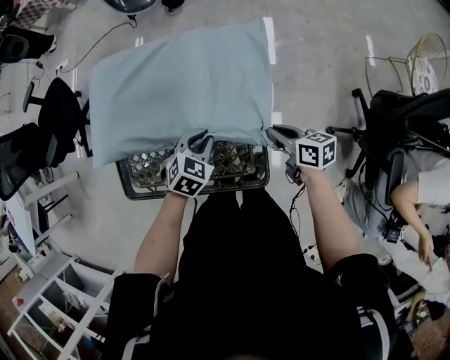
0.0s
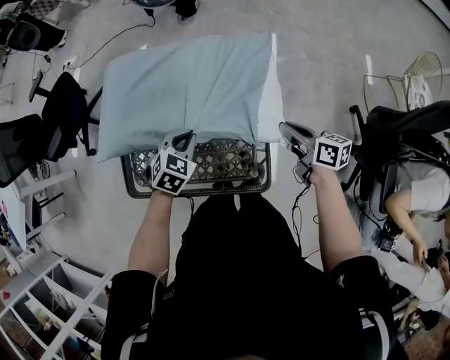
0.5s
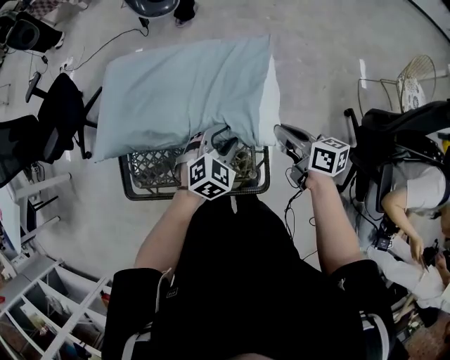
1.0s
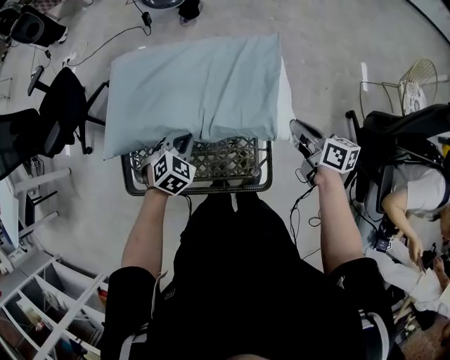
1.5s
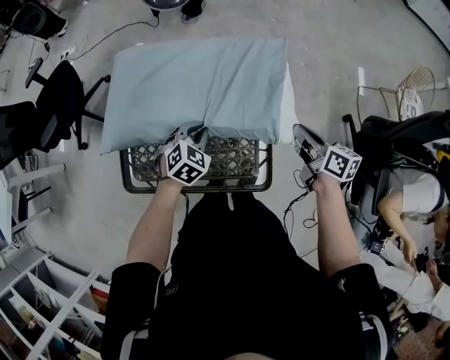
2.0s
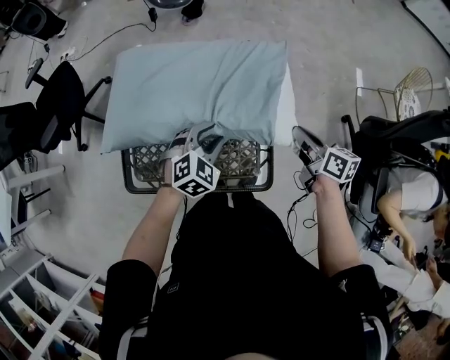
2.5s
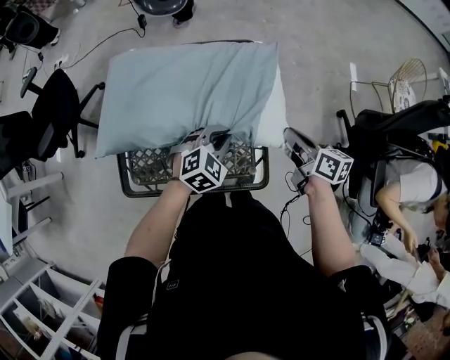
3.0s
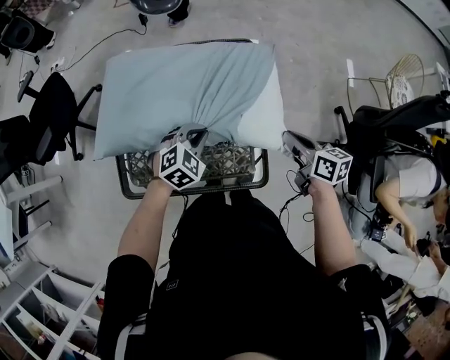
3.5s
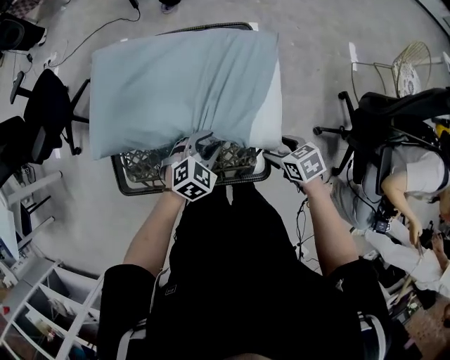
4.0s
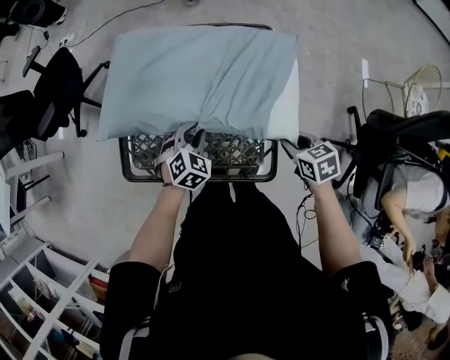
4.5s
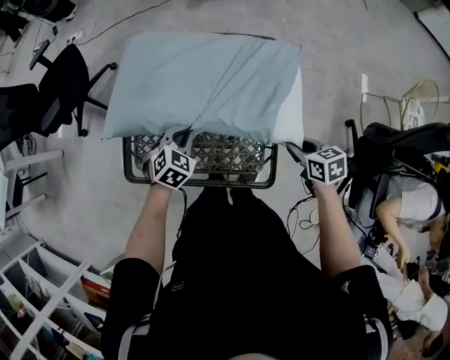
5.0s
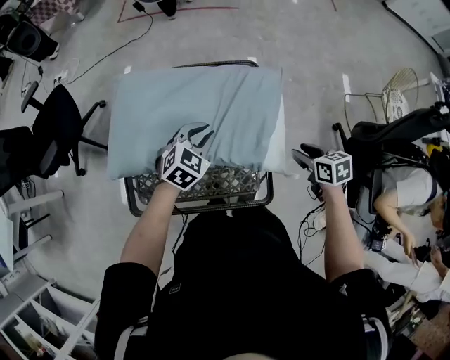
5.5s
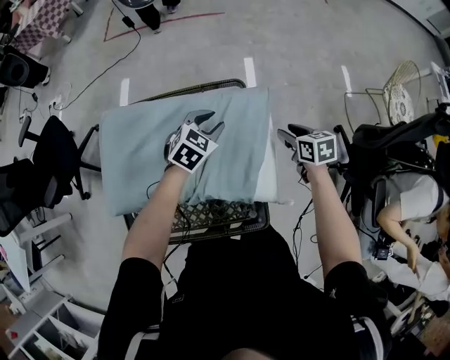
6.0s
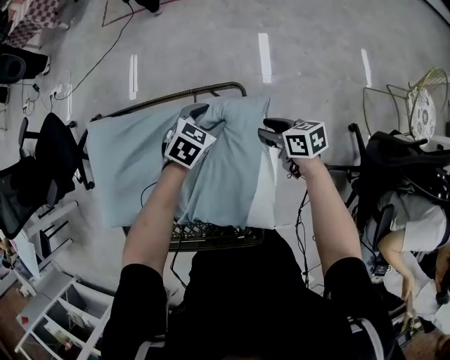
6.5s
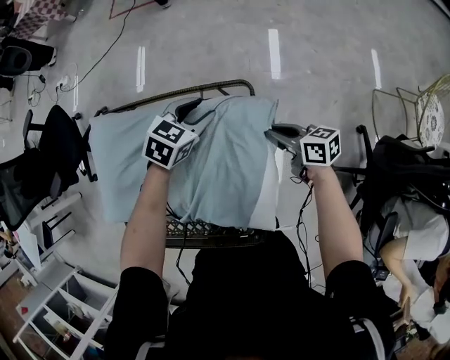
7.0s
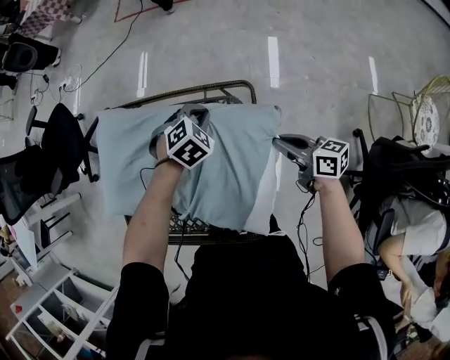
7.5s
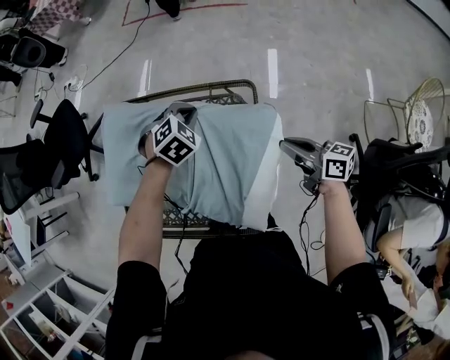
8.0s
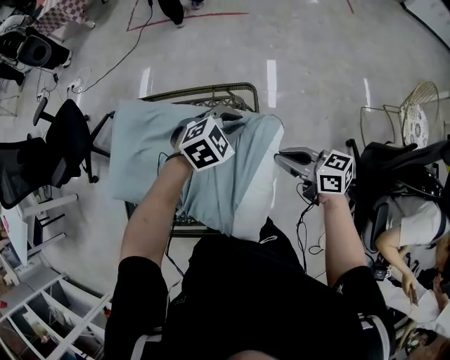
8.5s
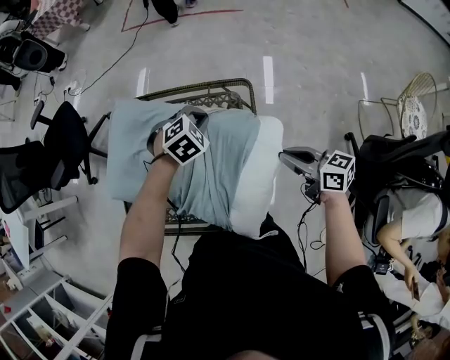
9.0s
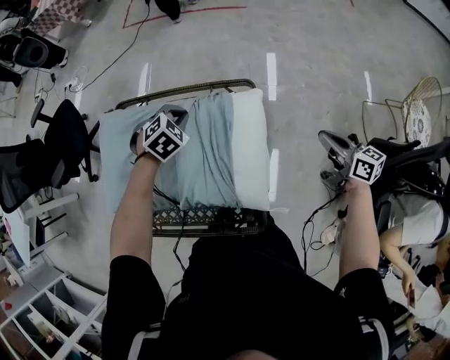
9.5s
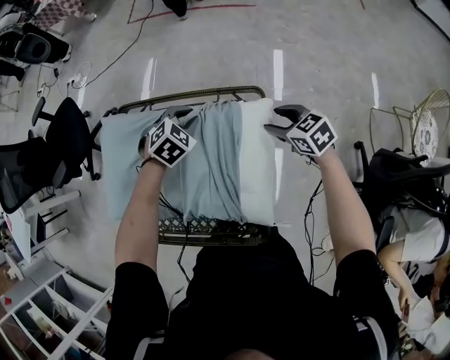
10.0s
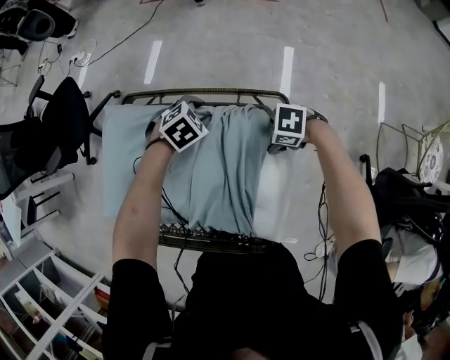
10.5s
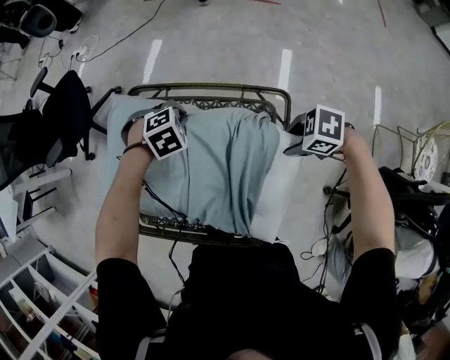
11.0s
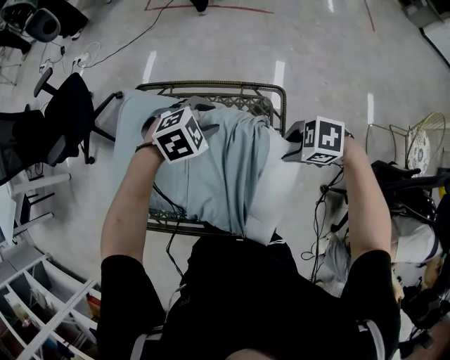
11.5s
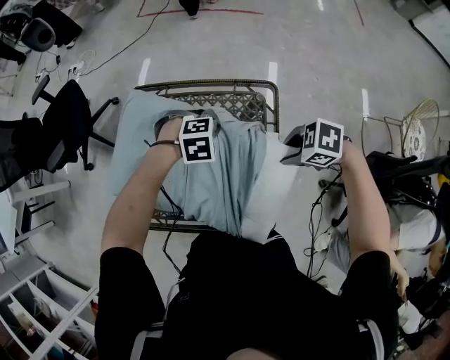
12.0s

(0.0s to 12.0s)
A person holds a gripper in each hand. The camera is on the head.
0.0s - 2.0s: The left gripper goes left and right, about 15 cm each way, reversing 2 times, and opens, then closes again; the right gripper shifts roughly 10 cm upward.
2.0s - 4.0s: The left gripper heads backward and to the right, covering about 10 cm, and opens its fingers, while the right gripper travels downward and backward by roughly 15 cm, angles its fingers downward, by about 30 degrees, and opens its fingers.
4.0s - 6.0s: The right gripper ends up approximately 25 cm from where it was, and turns by about 20 degrees. Meanwhile the left gripper moves some 25 cm, and closes, then reopens.
6.0s - 8.0s: The left gripper goes downward and returns, some 10 cm each way, swivels approximately 30 degrees, and closes; the right gripper travels upward by about 5 cm, tips its fingers upward by roughly 40 degrees, and closes.
8.0s - 10.0s: The left gripper goes to the right and returns, some 10 cm each way, while the right gripper is displaced forward and downward by approximately 10 cm, points its fingers about 30 degrees further downward, and opens.
10.0s - 12.0s: The left gripper swings up and down, some 10 cm each way, with 2 reversals, rotates approximately 30 degrees, and opens and closes again, while the right gripper moves roughly 20 cm, and rotates about 50 degrees.

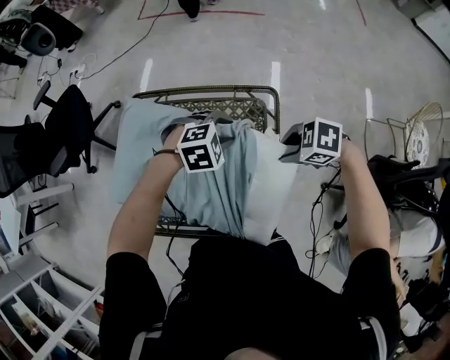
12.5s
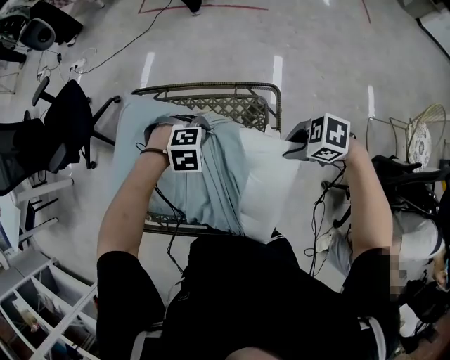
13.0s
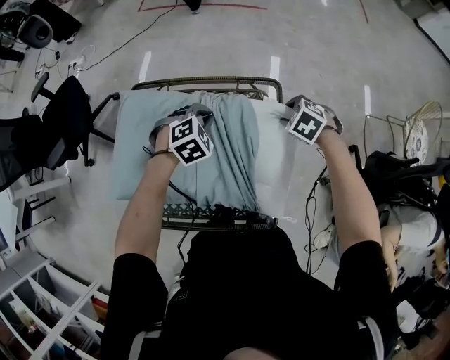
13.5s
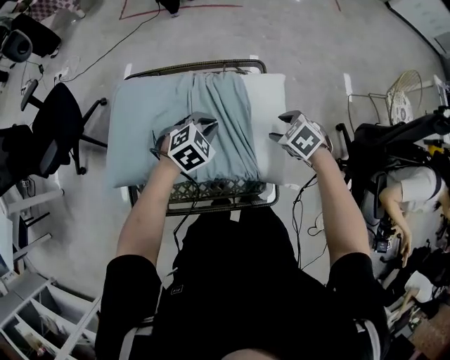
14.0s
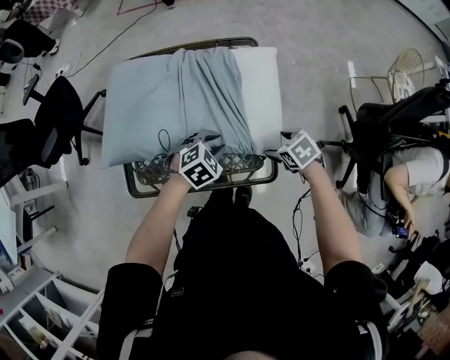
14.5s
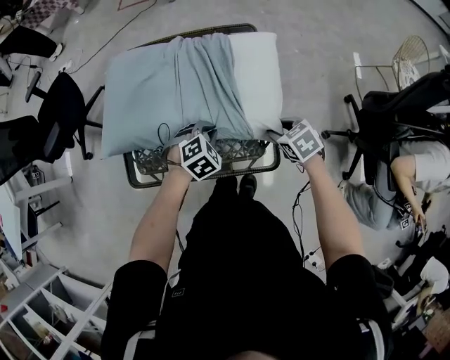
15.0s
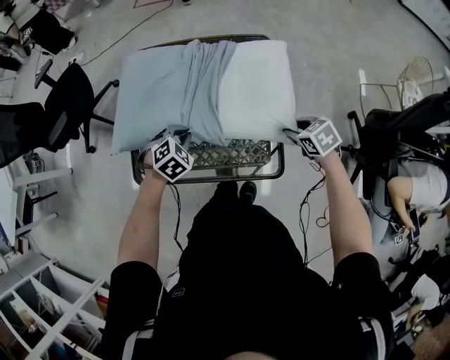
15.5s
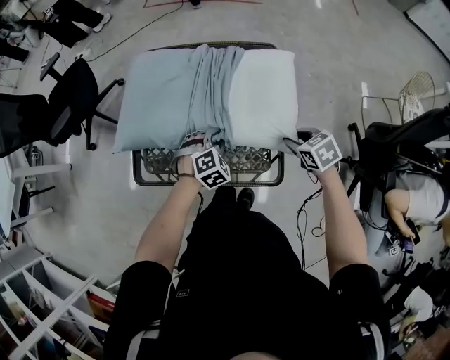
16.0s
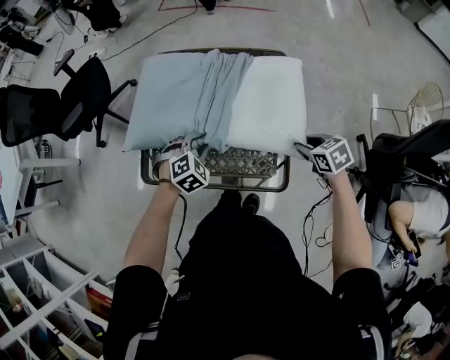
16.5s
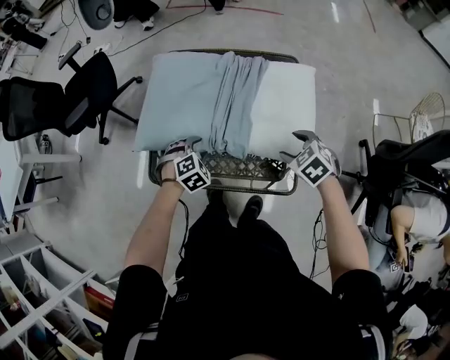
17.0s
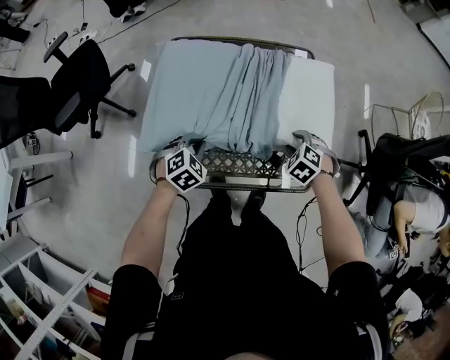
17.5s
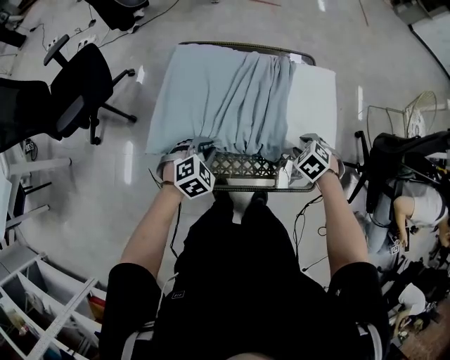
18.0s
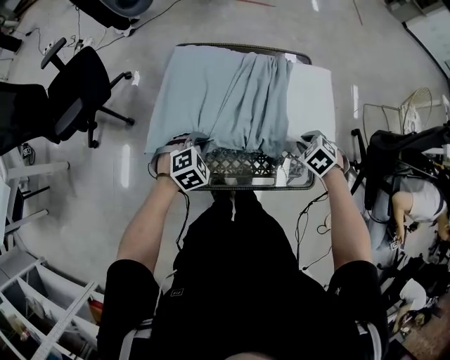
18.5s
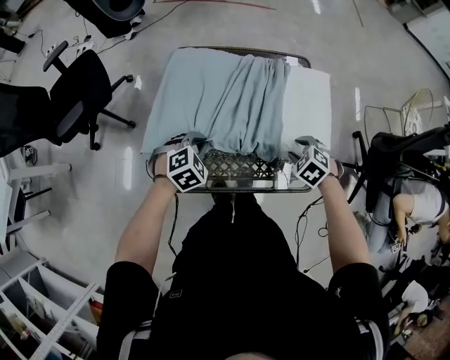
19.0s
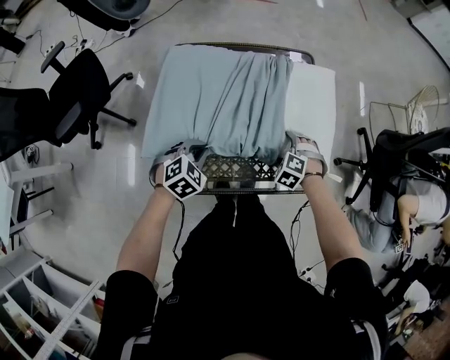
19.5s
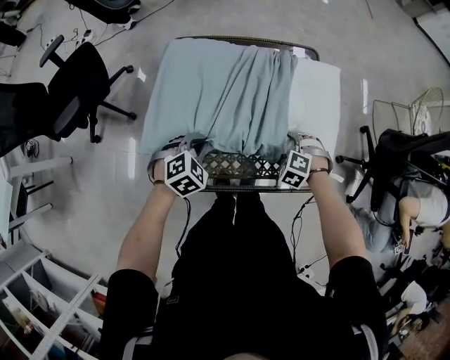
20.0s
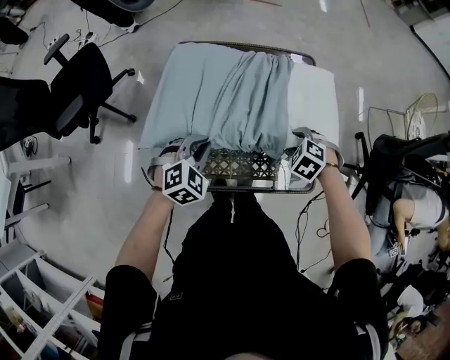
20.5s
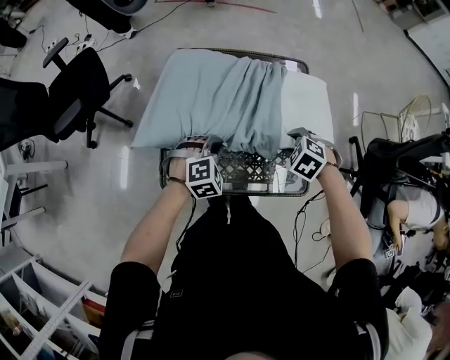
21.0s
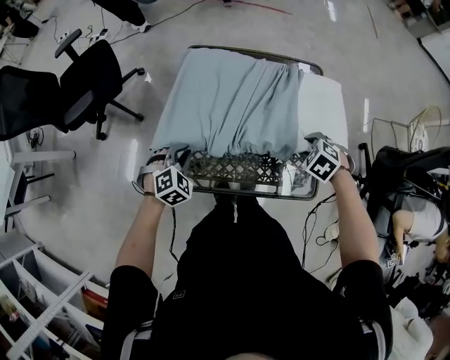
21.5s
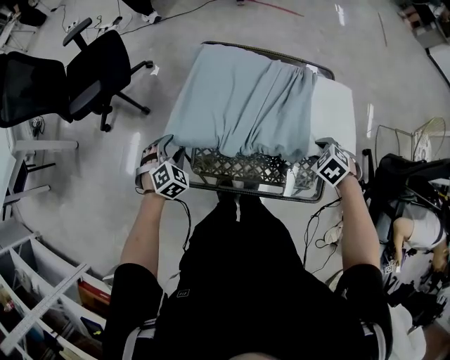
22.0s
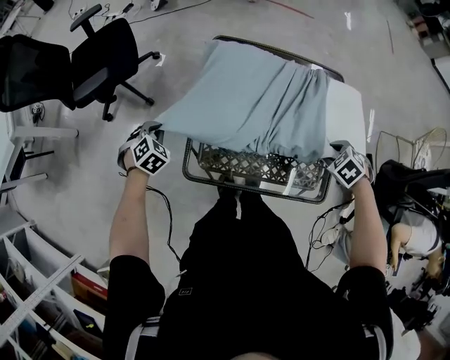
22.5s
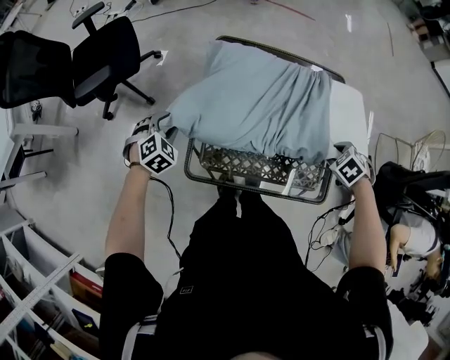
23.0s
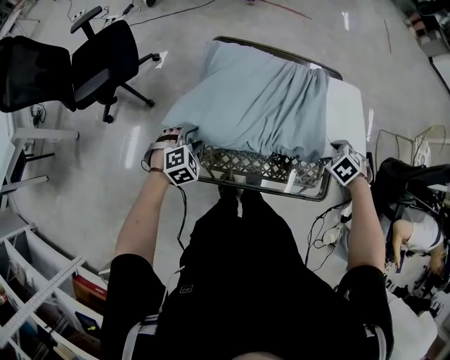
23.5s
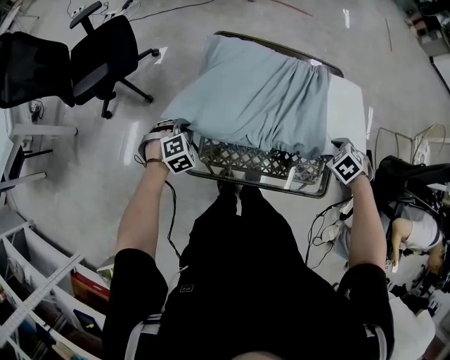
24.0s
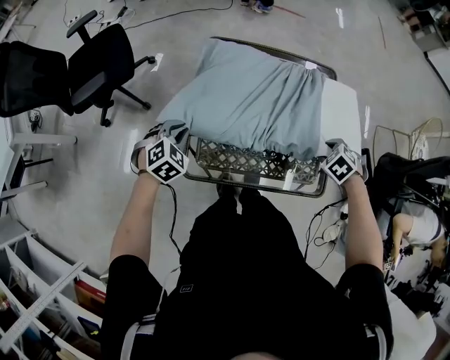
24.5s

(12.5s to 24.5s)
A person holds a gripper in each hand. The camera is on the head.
12.5s - 14.5s: The right gripper changes place by some 20 cm, changes its angle by some 50 degrees, and opens its fingers. Meanwhile the left gripper ends up about 25 cm from where it was, and closes and opens again.
14.5s - 16.5s: The right gripper shifts by some 5 cm, and closes its fingers, while the left gripper goes left and right, about 10 cm each way, reversing 2 times, swivels approximately 20 degrees, and closes and opens again.
16.5s - 18.5s: The left gripper shifts by about 15 cm, and closes up. Meanwhile the right gripper goes downward and returns, roughly 5 cm each way, rotates about 30 degrees, and opens, then closes again.
18.5s - 20.5s: The right gripper goes downward and returns, approximately 10 cm each way, and opens, then closes again; the left gripper moves upward, some 5 cm.
20.5s - 22.5s: The left gripper moves roughly 25 cm, swivels some 30 degrees, and opens, then closes once more. The right gripper changes place by approximately 5 cm.
22.5s - 24.5s: The left gripper ends up some 10 cm from where it was, and opens, then closes again.

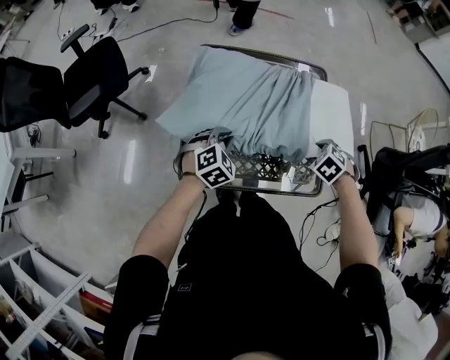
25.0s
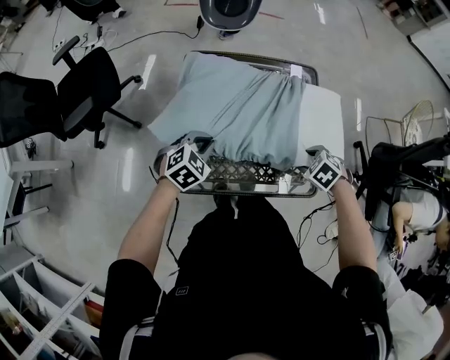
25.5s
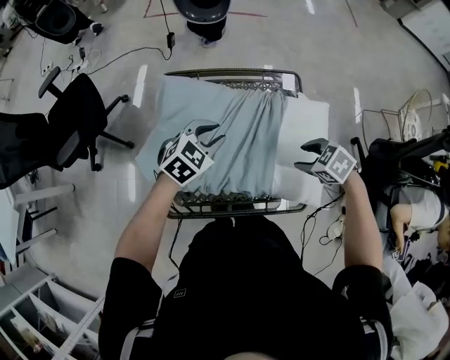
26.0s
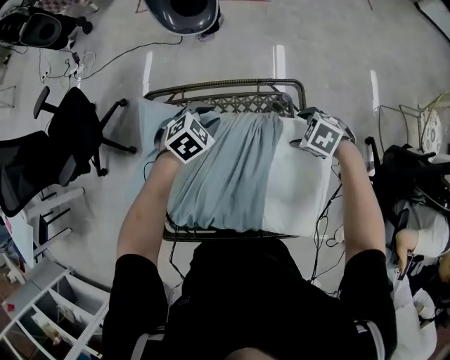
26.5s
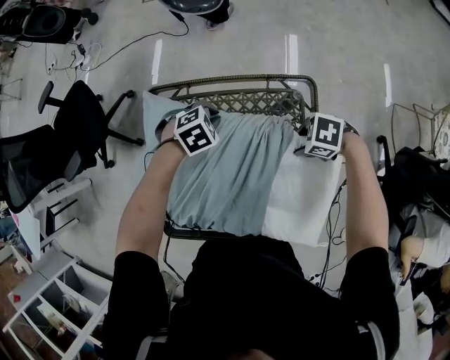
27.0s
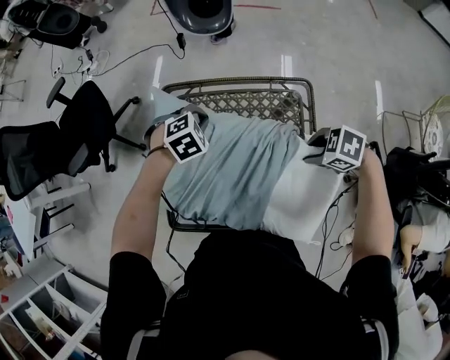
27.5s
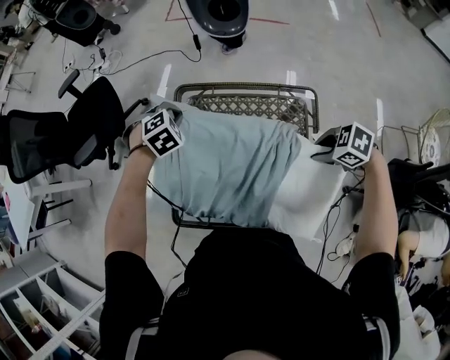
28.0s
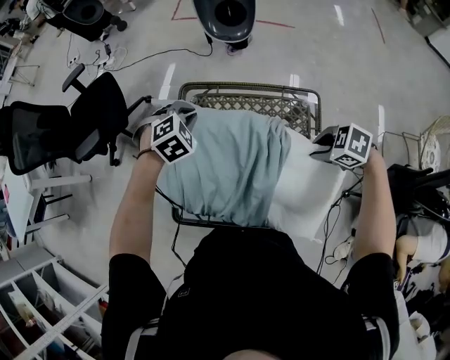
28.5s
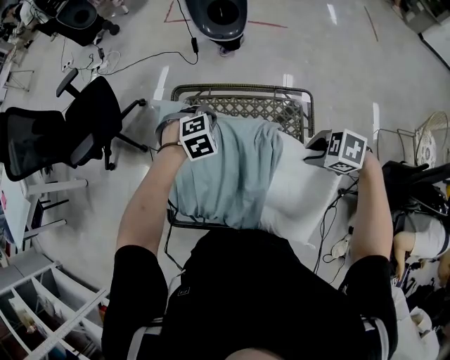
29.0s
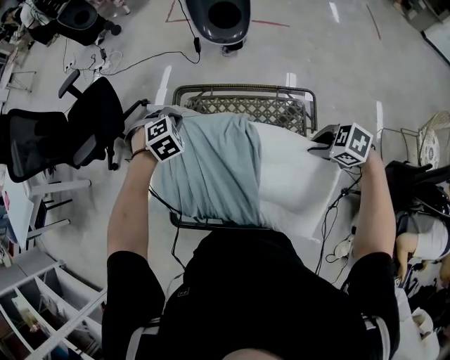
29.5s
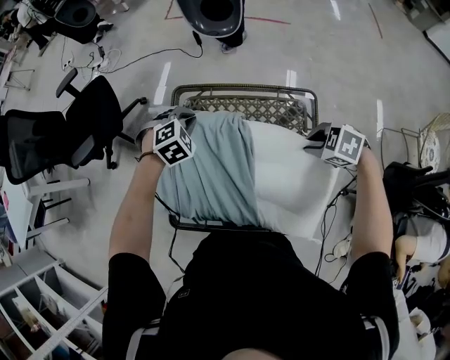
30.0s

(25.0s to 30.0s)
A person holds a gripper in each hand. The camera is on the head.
25.0s - 27.5s: The left gripper moves up and down over some 15 cm, changing direction 2 times, and rotates some 20 degrees; the right gripper moves up and down over approximately 10 cm, changing direction 2 times, swivels about 40 degrees, and opens, then closes once more.
